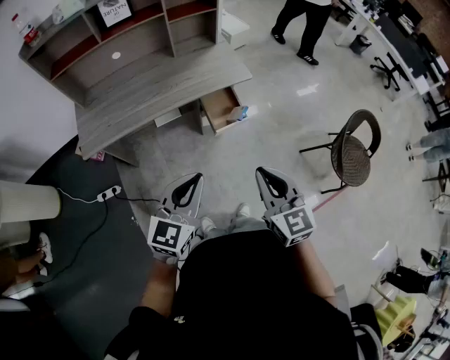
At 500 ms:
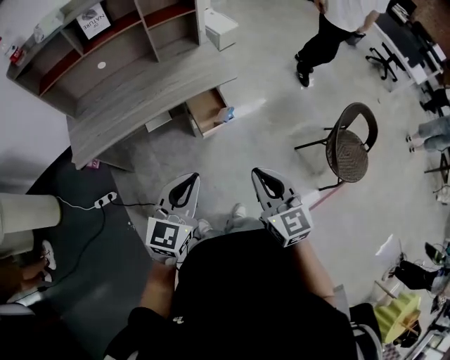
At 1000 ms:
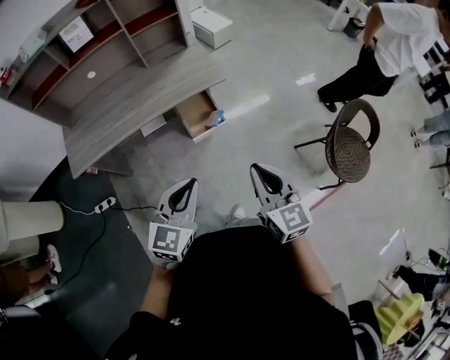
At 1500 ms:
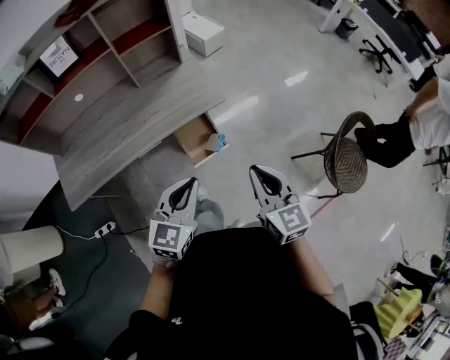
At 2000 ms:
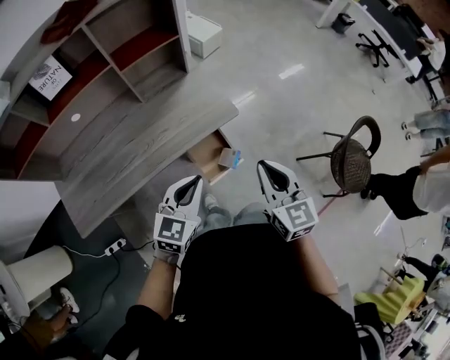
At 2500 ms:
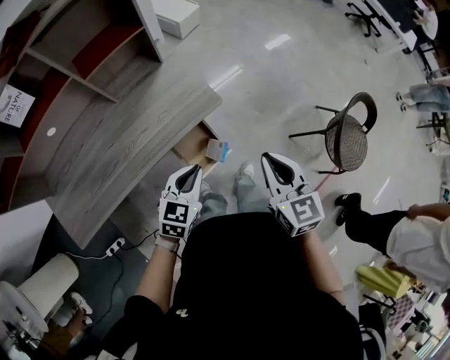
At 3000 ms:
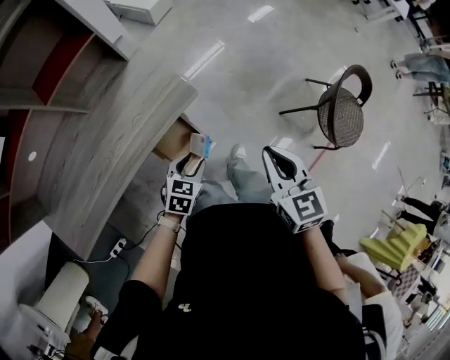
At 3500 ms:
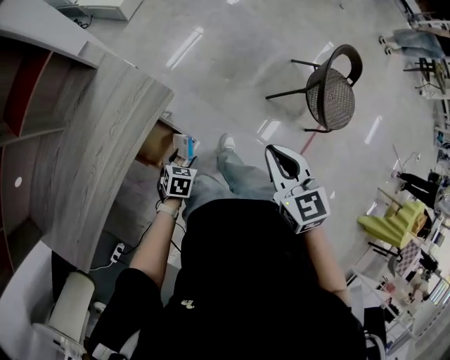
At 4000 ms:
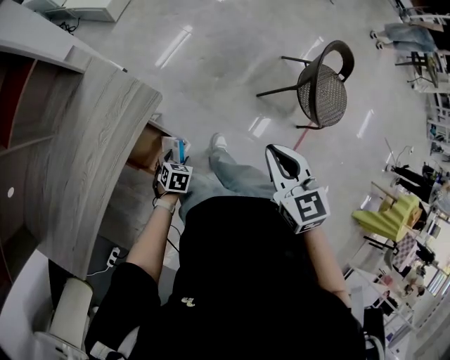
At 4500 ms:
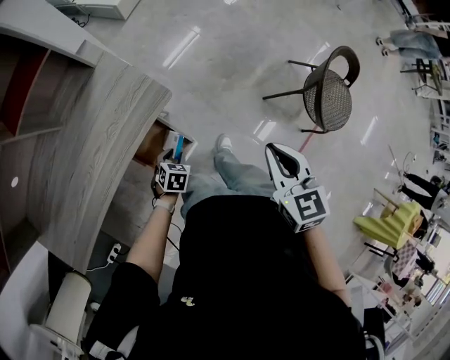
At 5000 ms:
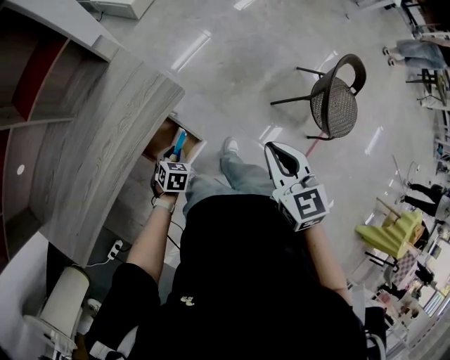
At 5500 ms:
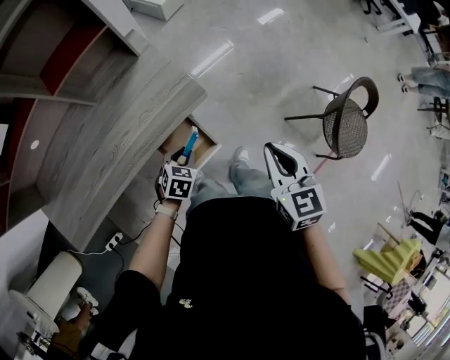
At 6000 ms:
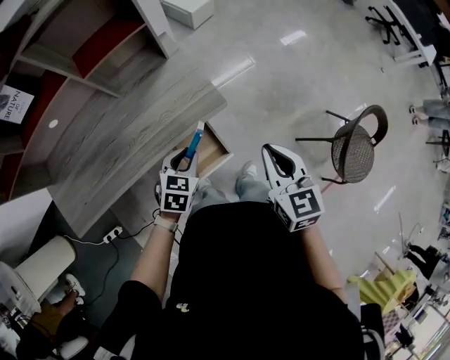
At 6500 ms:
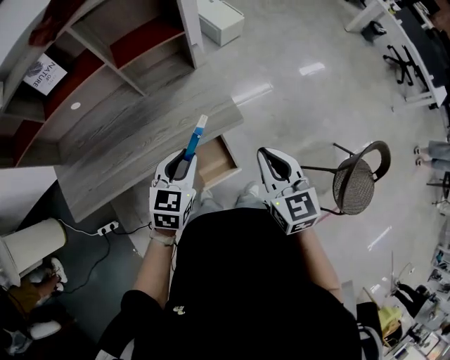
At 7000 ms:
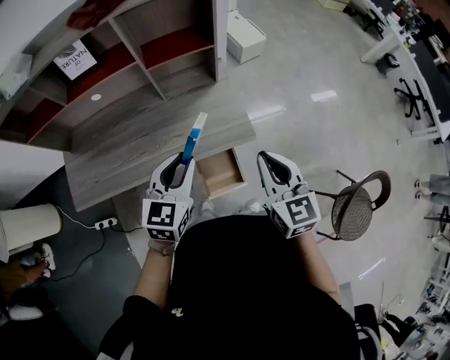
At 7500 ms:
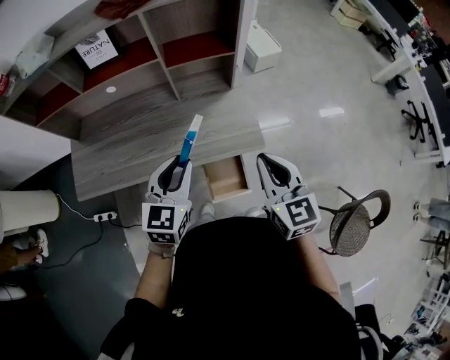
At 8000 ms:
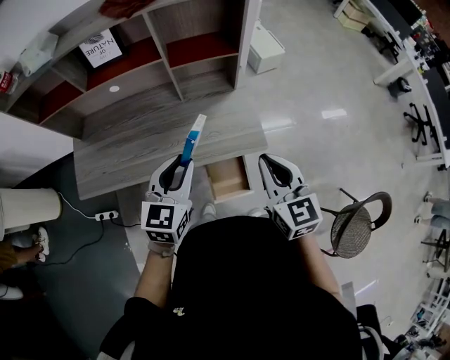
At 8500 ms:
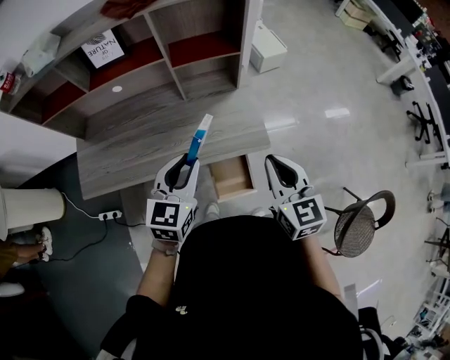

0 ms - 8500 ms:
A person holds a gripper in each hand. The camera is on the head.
0 ms - 2000 ms: Both grippers travel together forward, approximately 30 cm.
2000 ms - 4000 ms: The left gripper is displaced downward by roughly 40 cm, angles its fingers downward, by some 40 degrees, and opens up; the right gripper shifts by about 25 cm, and swivels about 30 degrees.
4000 ms - 6500 ms: The right gripper changes place by approximately 20 cm, and rotates some 30 degrees. The left gripper shifts approximately 35 cm upward, points its fingers roughly 30 degrees further upward, and closes.
6500 ms - 8500 ms: The left gripper travels upward and to the left by roughly 10 cm. Meanwhile the right gripper is displaced to the left by some 5 cm.

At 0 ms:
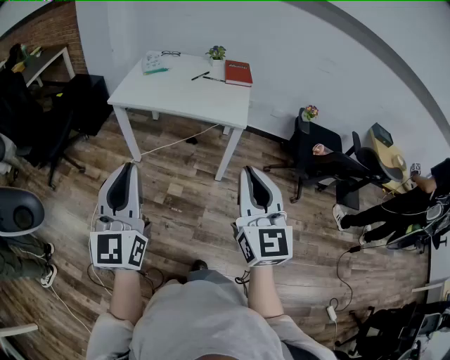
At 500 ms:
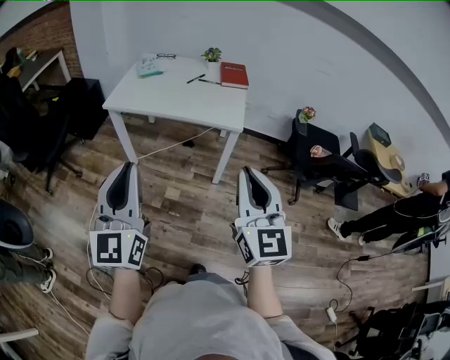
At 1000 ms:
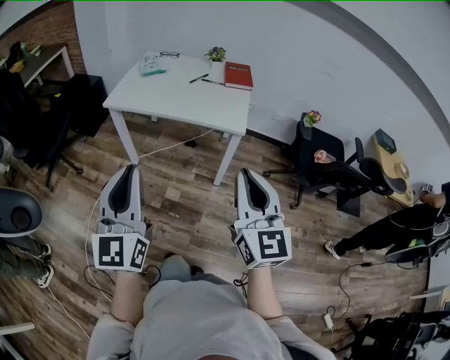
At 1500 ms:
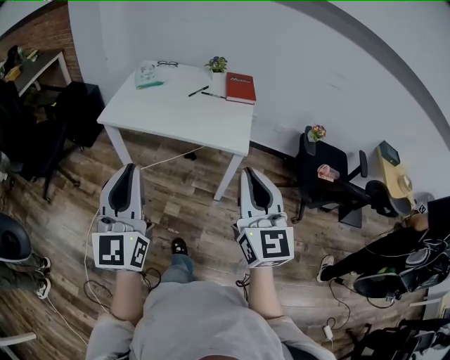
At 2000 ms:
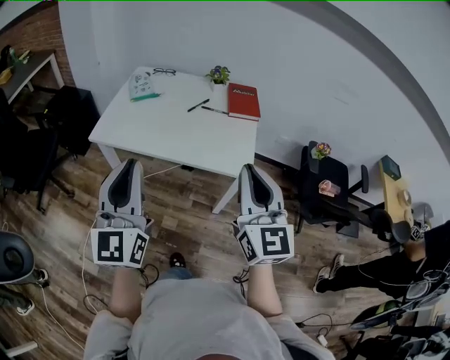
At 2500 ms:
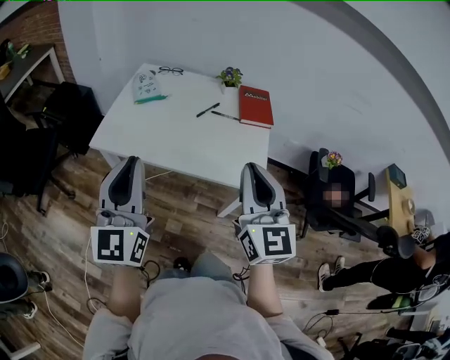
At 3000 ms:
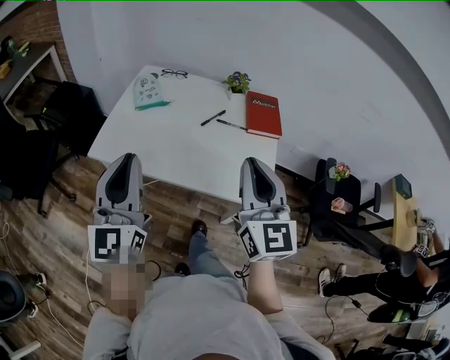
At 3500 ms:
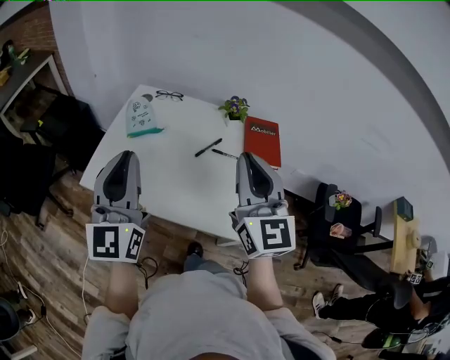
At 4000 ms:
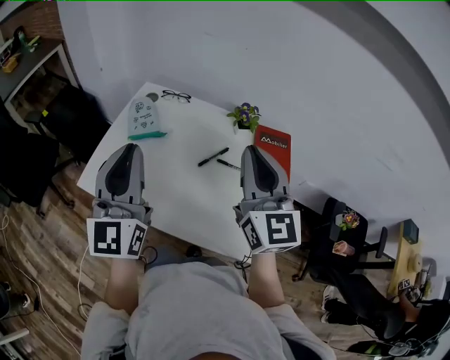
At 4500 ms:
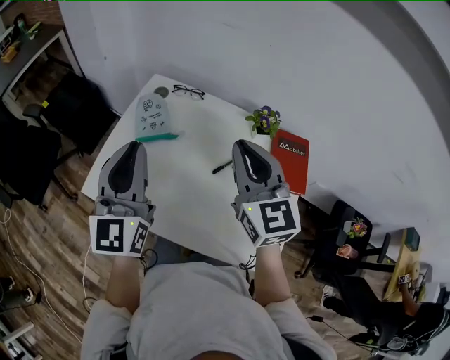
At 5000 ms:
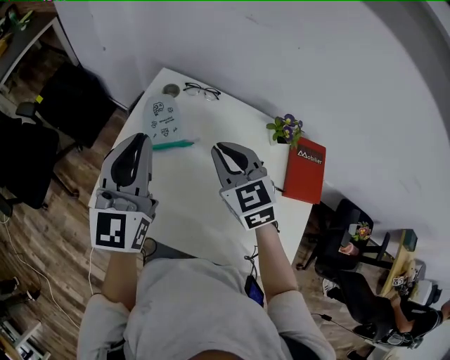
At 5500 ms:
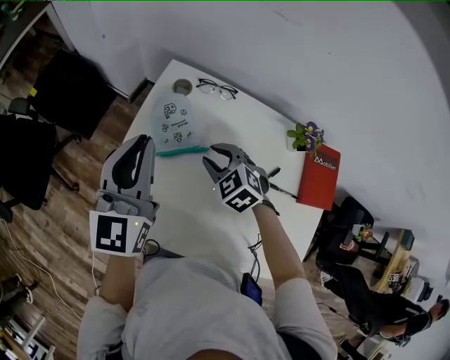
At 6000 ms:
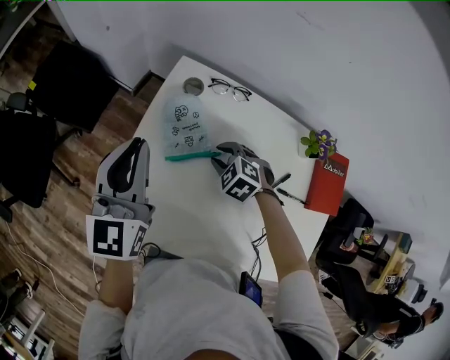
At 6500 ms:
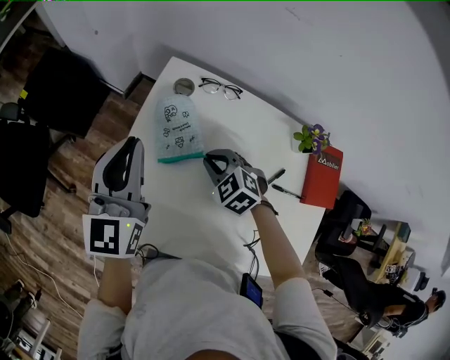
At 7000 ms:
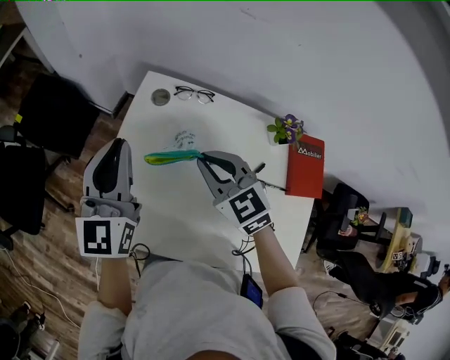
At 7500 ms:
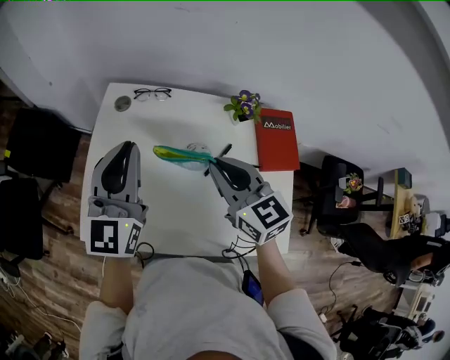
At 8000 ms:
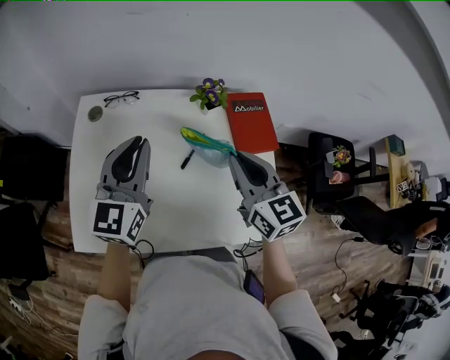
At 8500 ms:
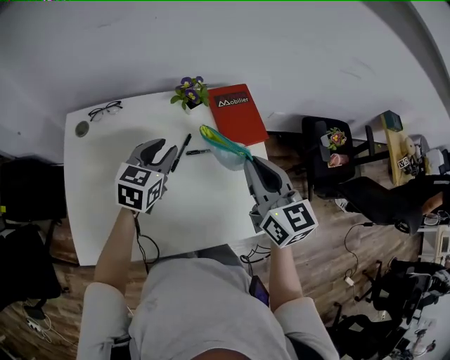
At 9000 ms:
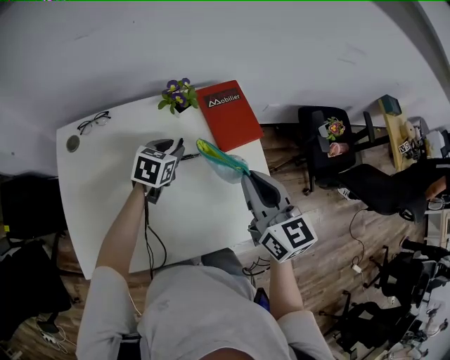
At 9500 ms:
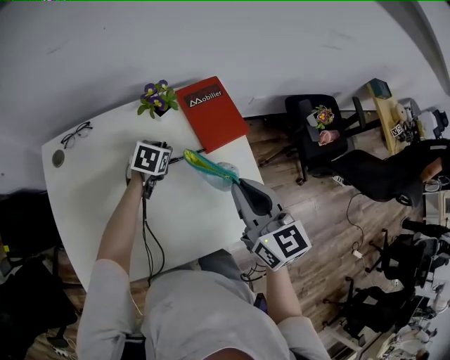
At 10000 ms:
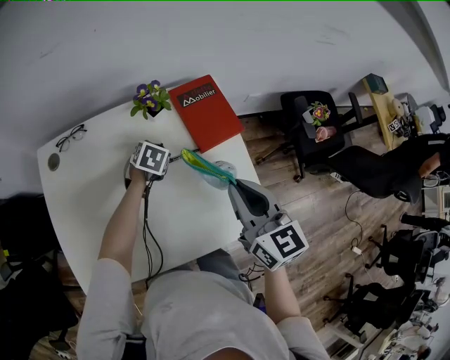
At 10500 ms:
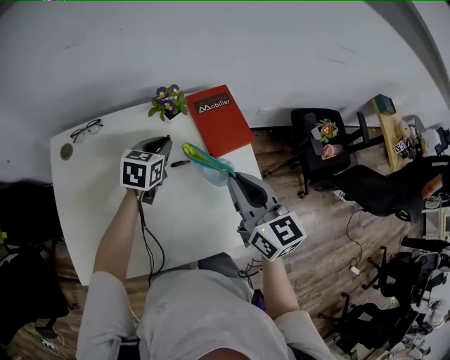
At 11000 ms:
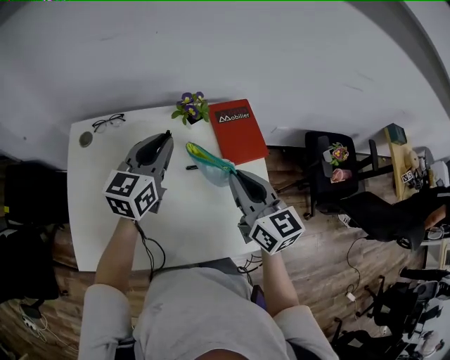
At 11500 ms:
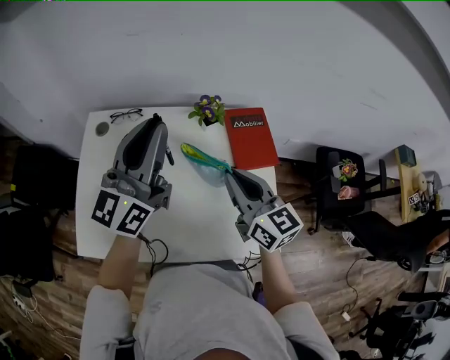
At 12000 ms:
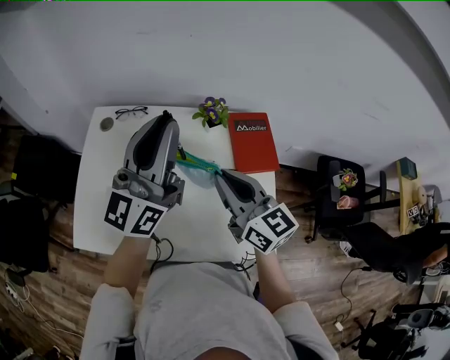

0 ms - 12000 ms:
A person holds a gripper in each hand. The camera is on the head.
0 ms - 2000 ms: The two grippers go approximately 30 cm forward.
2000 ms - 4000 ms: The two grippers go about 40 cm forward.
4000 ms - 6000 ms: The left gripper moves forward, to the left and downward, roughly 35 cm; the right gripper goes roughly 50 cm downward, forward and to the left, tilts its fingers about 70 degrees downward, and opens up.
6000 ms - 8000 ms: The left gripper ends up some 25 cm from where it was, and rotates roughly 30 degrees. Meanwhile the right gripper shifts by about 40 cm, tips its fingers upward by roughly 50 degrees, and closes its fingers.
8000 ms - 10000 ms: The right gripper heads to the right, covering roughly 10 cm, while the left gripper heads downward, to the right and forward, covering some 35 cm, and tilts its fingers approximately 60 degrees downward.
10000 ms - 12000 ms: The left gripper shifts roughly 40 cm upward, and points its fingers roughly 90 degrees further upward; the right gripper moves about 10 cm, and turns by roughly 30 degrees.

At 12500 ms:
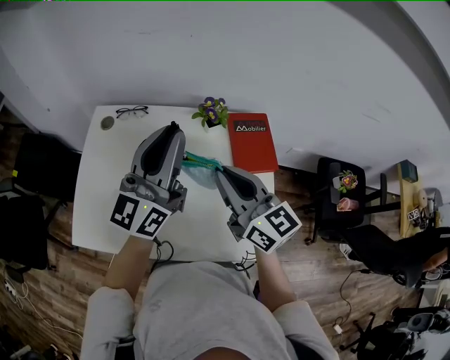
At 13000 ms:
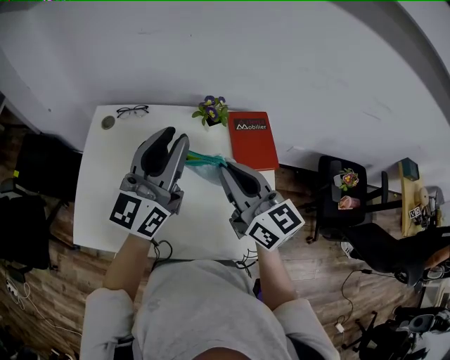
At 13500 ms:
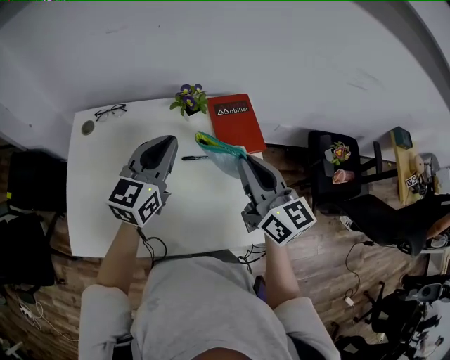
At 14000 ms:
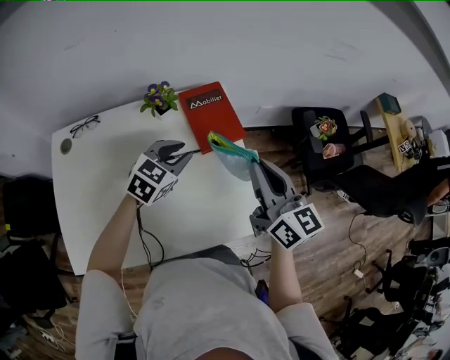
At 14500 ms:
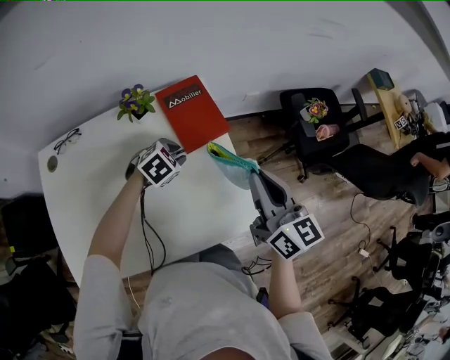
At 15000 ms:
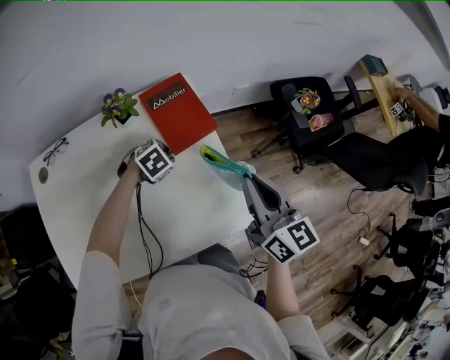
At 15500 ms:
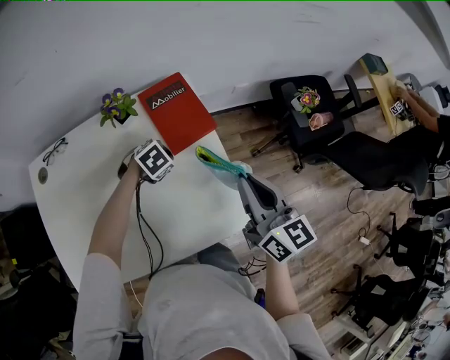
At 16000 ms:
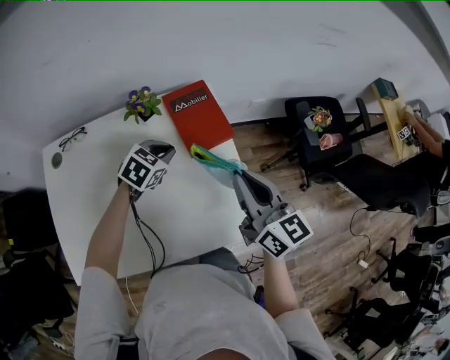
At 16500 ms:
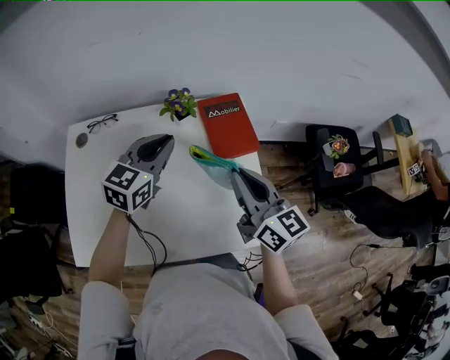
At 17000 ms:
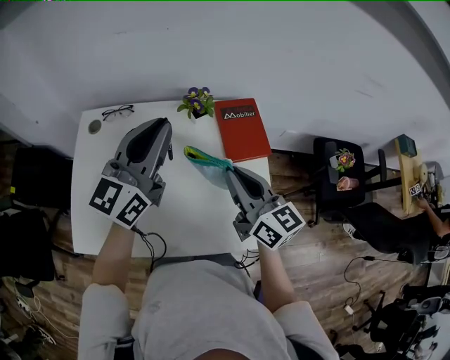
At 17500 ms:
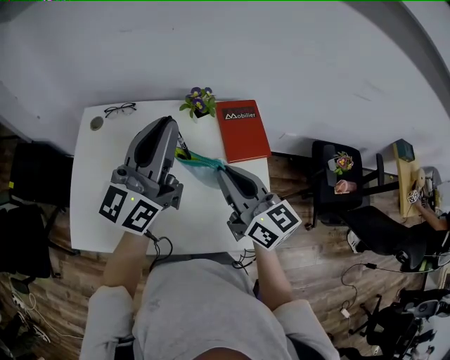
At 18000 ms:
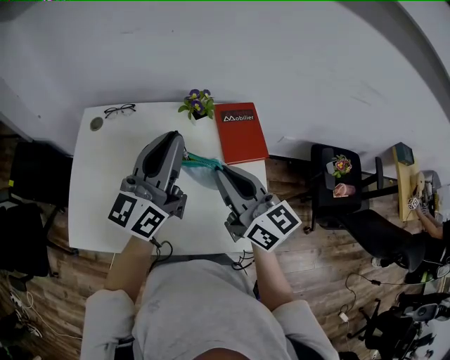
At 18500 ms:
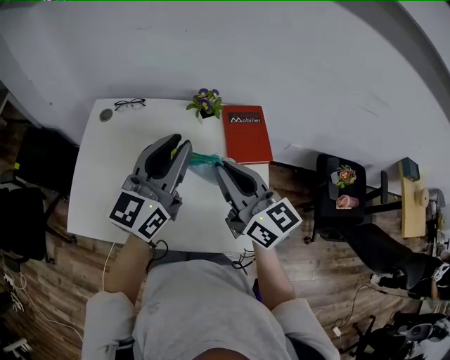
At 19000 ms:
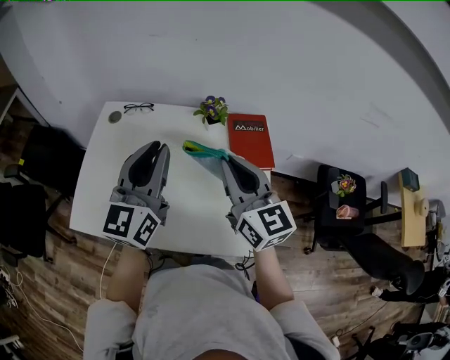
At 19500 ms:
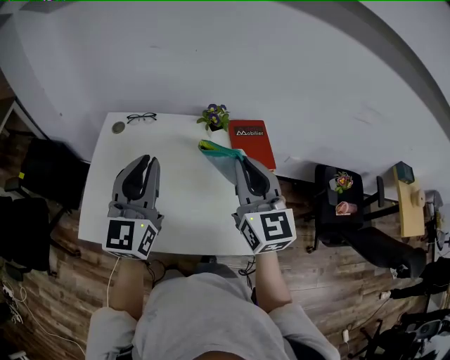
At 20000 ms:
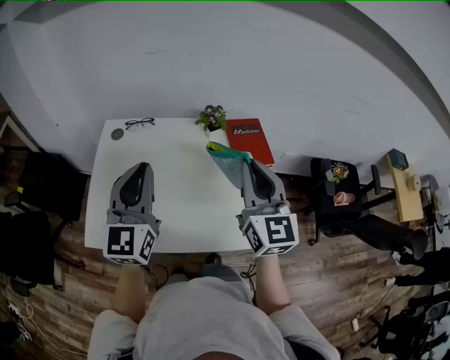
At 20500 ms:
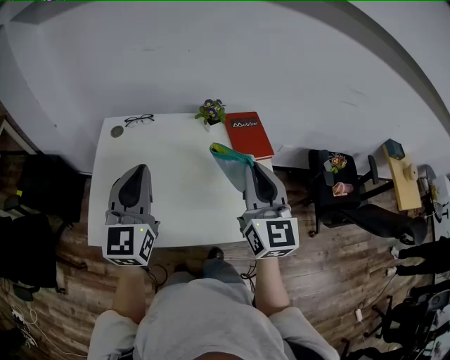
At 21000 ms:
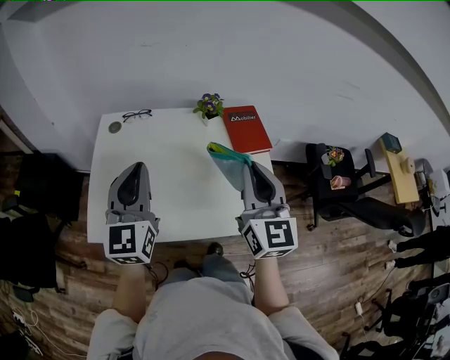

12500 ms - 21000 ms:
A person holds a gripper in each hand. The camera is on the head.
12500 ms - 14500 ms: The left gripper is displaced downward by about 35 cm, and tilts its fingers roughly 80 degrees downward; the right gripper ends up about 25 cm from where it was, and changes its angle by roughly 40 degrees.
14500 ms - 16500 ms: The left gripper is displaced upward by some 20 cm, and points its fingers roughly 40 degrees further upward. The right gripper moves roughly 10 cm.
16500 ms - 19000 ms: The left gripper shifts roughly 20 cm backward, upward and to the left, and changes its angle by about 40 degrees. The right gripper is displaced to the left and upward by about 10 cm.
19000 ms - 21000 ms: The left gripper heads to the left and backward, covering approximately 15 cm. The right gripper heads backward, covering about 10 cm, and turns by about 30 degrees.
